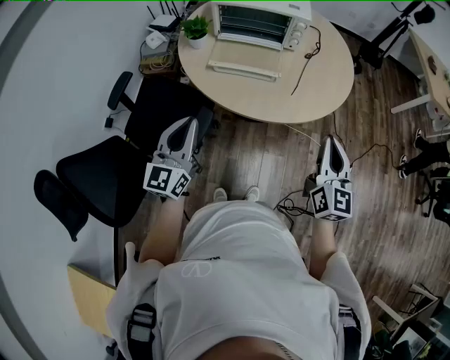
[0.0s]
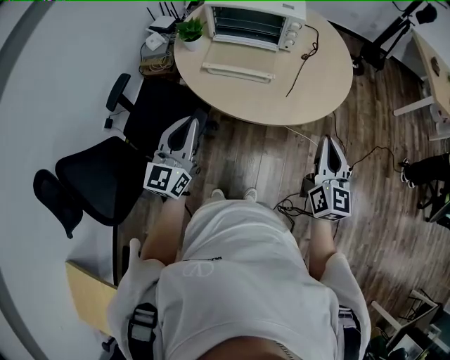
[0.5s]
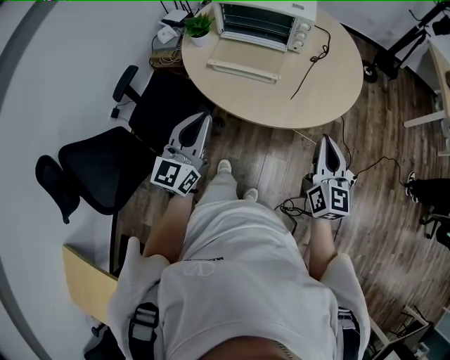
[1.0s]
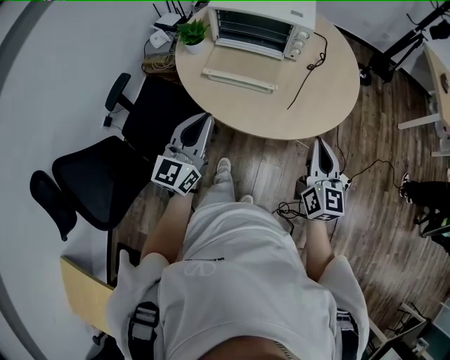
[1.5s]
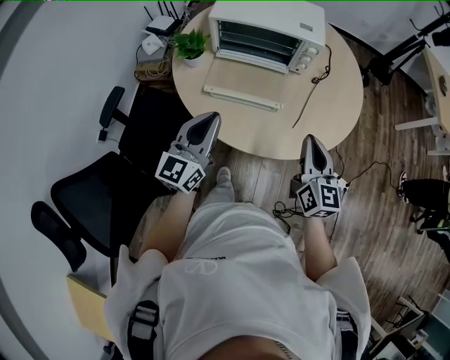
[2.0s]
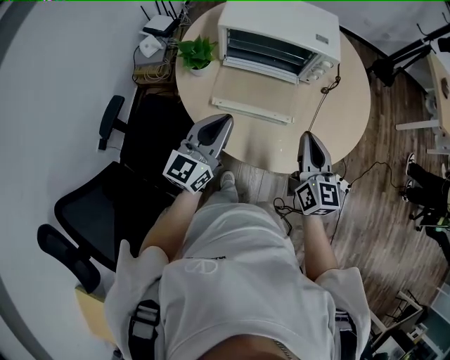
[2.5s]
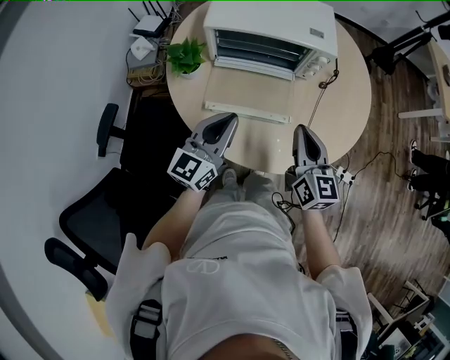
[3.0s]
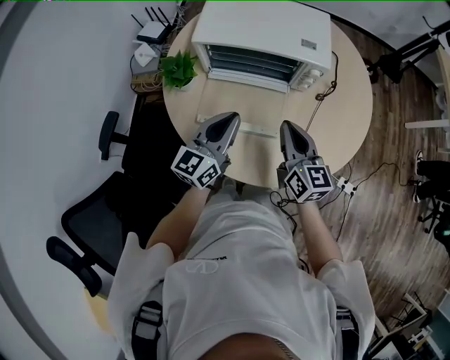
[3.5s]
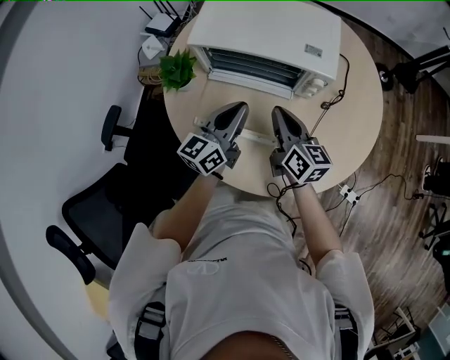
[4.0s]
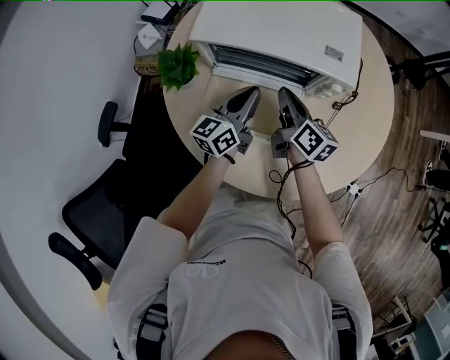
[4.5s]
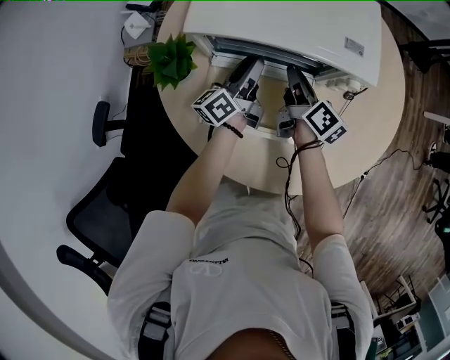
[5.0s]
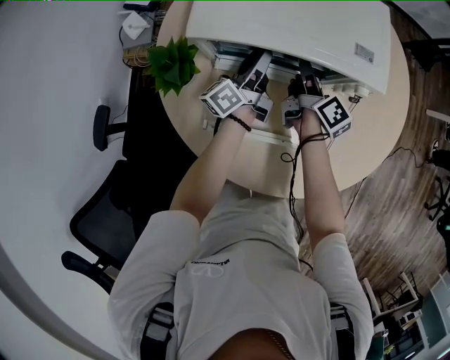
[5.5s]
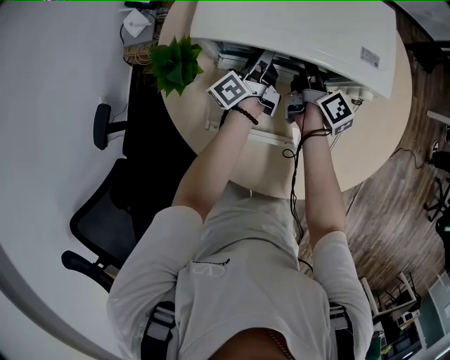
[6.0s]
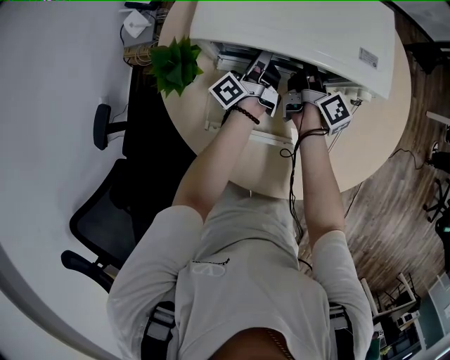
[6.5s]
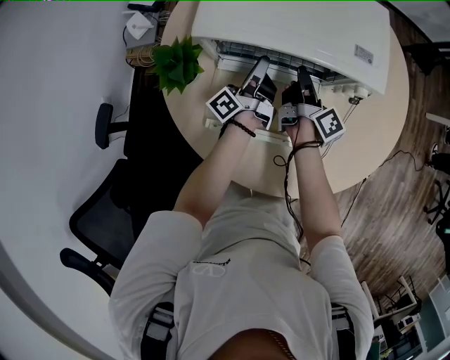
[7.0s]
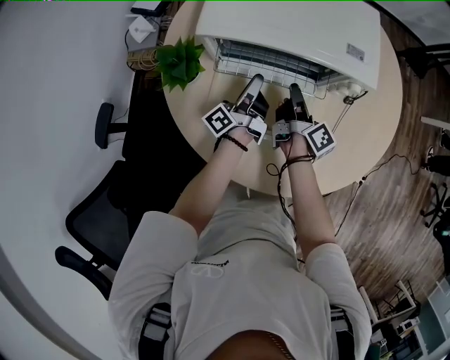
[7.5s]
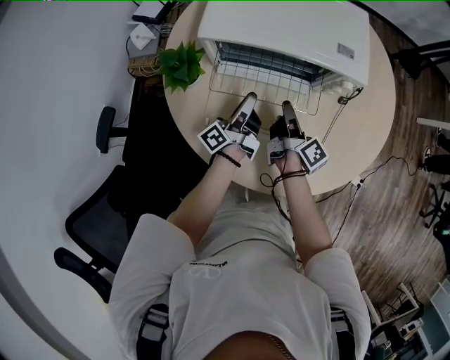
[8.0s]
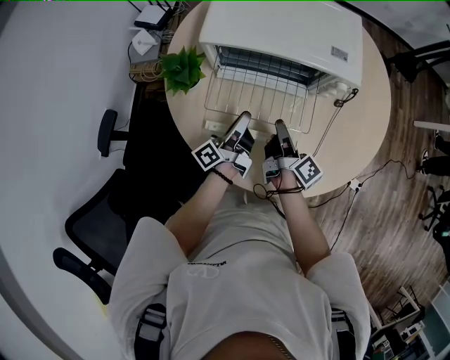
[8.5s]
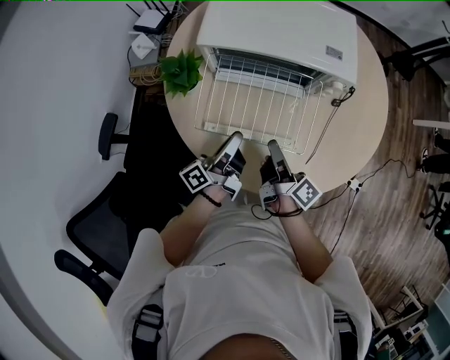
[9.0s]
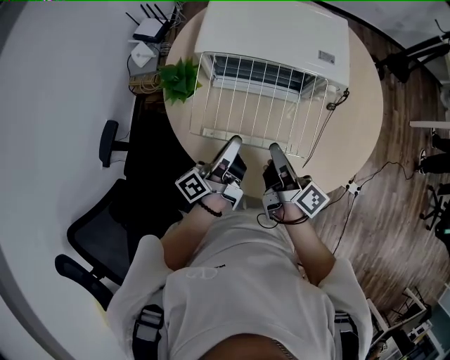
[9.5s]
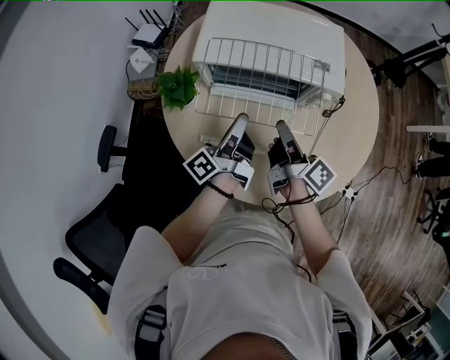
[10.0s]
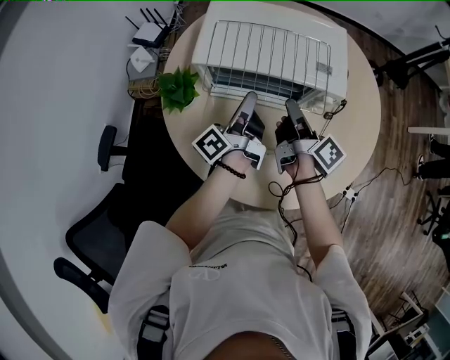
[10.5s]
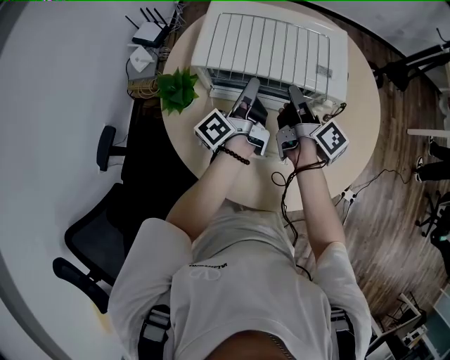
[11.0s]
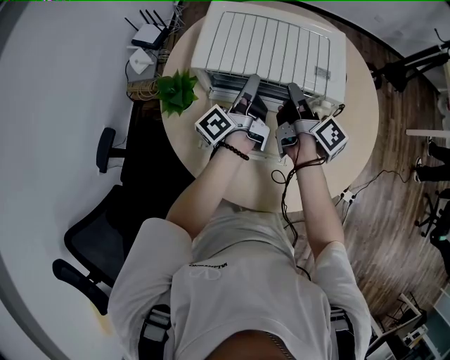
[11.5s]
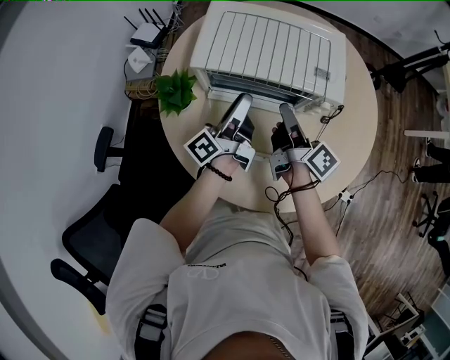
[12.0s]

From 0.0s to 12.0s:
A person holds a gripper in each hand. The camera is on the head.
From 0.0s to 2.0s: Both grippers move forward, some 20 cm.
From 2.0s to 4.0s: The grippers both shift forward by about 25 cm. The right gripper changes its angle by about 30 degrees.
From 4.0s to 6.0s: Both grippers move forward and downward, approximately 25 cm. The left gripper rolls counterclockwise, seen from behind, by about 50 degrees, and opens and closes again. The right gripper rotates around the line of its fingers by roughly 40 degrees, clockwise from behind, and opens up.
From 6.0s to 8.0s: The two grippers go approximately 15 cm backward. The right gripper closes up.
From 8.0s to 10.0s: The grippers both shift upward by about 10 cm.
From 10.0s to 12.0s: The grippers both shift forward by approximately 5 cm. The right gripper opens up. The left gripper opens its fingers.

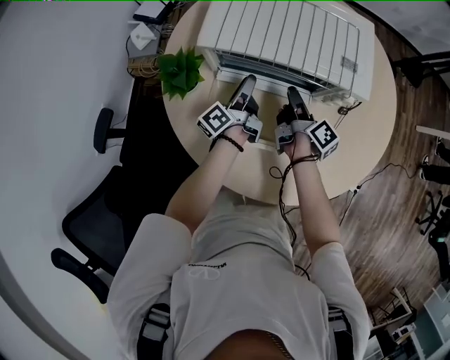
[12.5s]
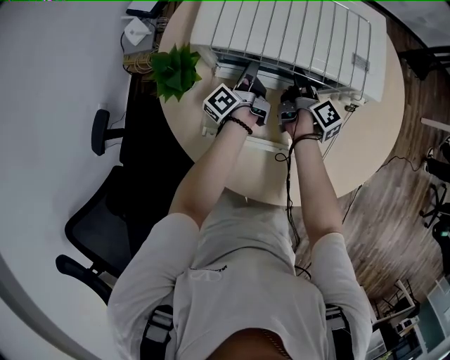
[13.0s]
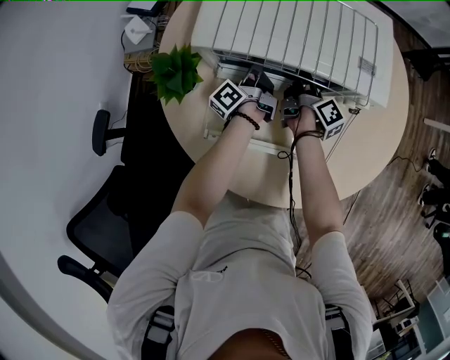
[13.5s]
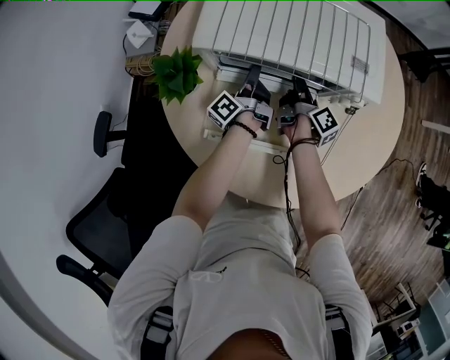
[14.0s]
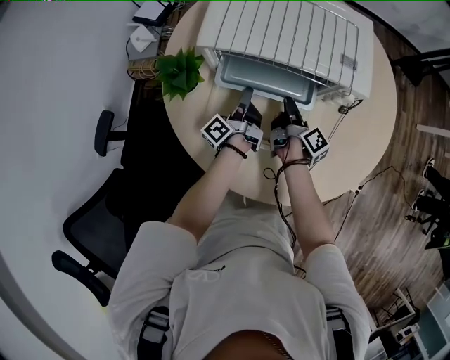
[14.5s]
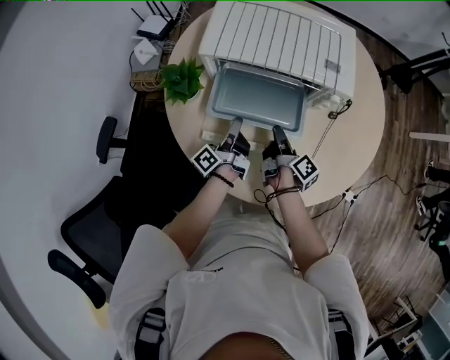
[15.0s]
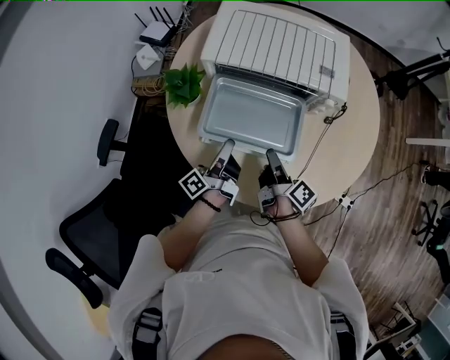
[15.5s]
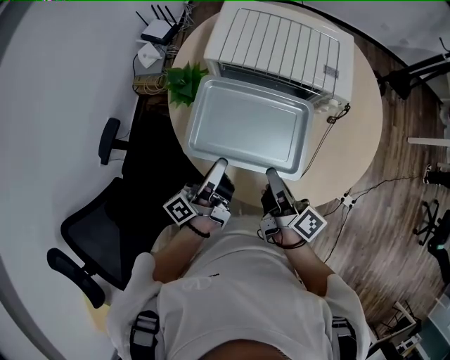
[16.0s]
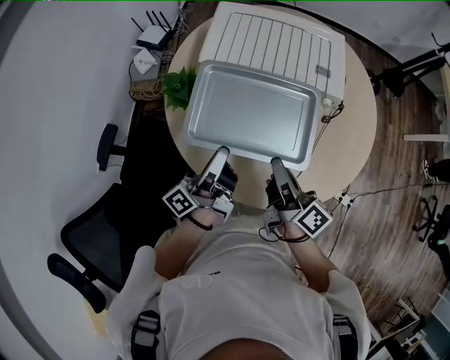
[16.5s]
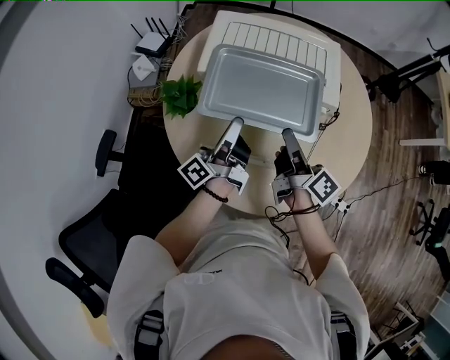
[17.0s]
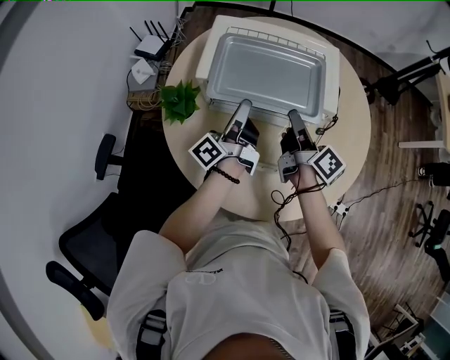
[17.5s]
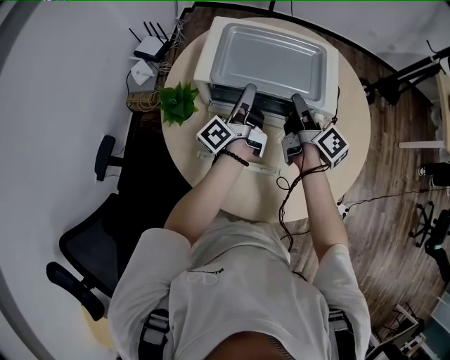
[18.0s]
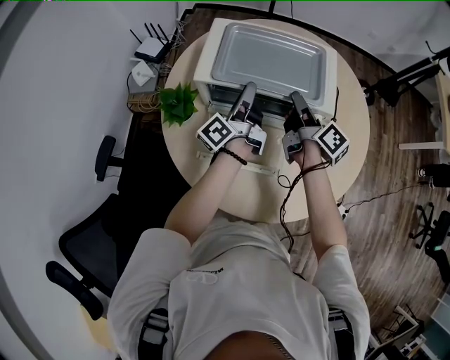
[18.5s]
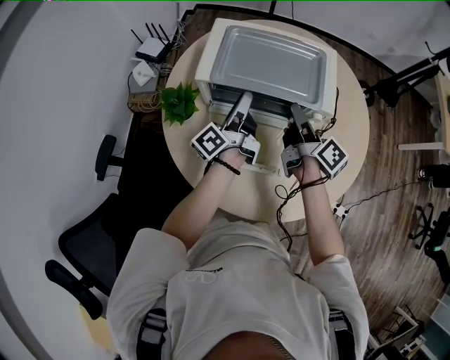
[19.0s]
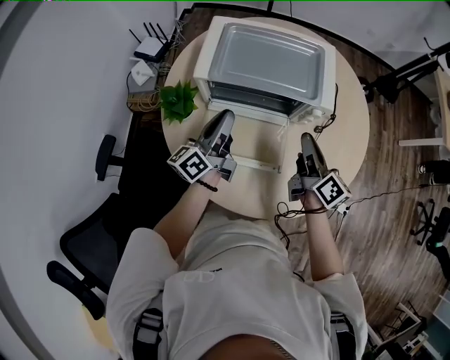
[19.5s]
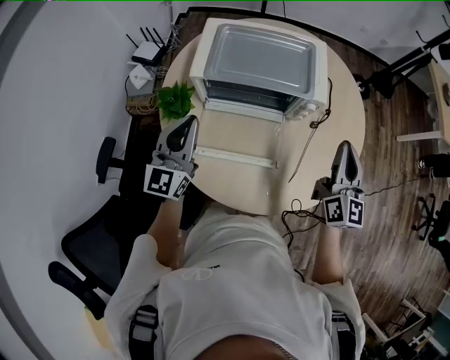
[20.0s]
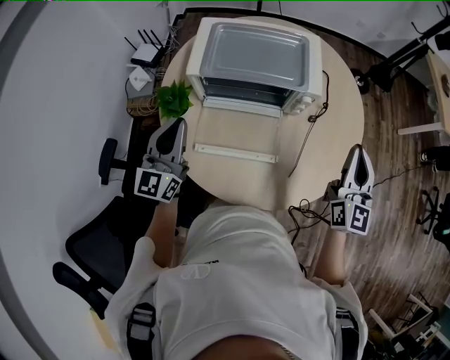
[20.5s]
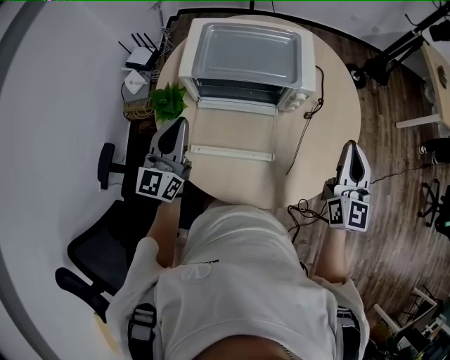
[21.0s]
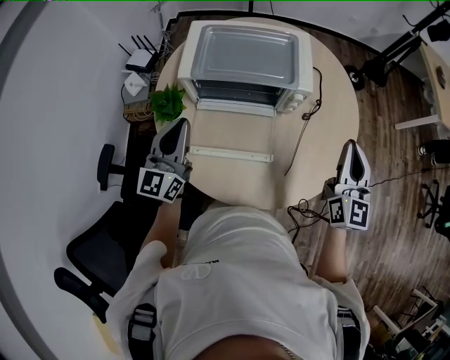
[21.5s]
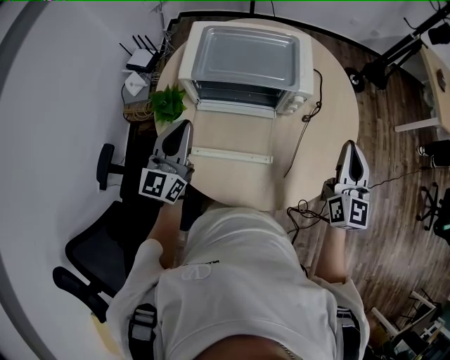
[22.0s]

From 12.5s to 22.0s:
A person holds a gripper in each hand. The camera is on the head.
From 12.5s to 14.5s: The left gripper travels forward and back again, roughly 5 cm each way, and closes up. The right gripper travels forward and back again, roughly 5 cm each way.
From 14.5s to 16.5s: The grippers both shift upward and backward by approximately 25 cm. The right gripper rotates roughly 30 degrees.
From 16.5s to 18.0s: Both grippers travel together forward, some 20 cm.
From 18.0s to 20.0s: The left gripper travels backward, to the left and upward by approximately 20 cm, rotates around the line of its fingers by some 80 degrees, clockwise from behind, and opens and closes again; the right gripper shifts roughly 25 cm backward, to the right and upward, rotates around the line of its fingers by roughly 60 degrees, counterclockwise from behind, and opens, then closes once more.
From 20.0s to 22.0s: The right gripper ends up roughly 5 cm from where it was.

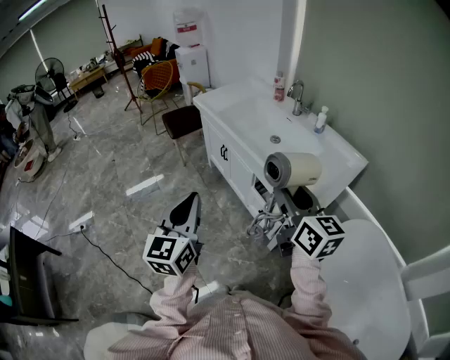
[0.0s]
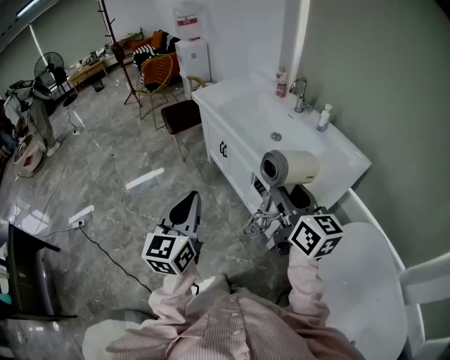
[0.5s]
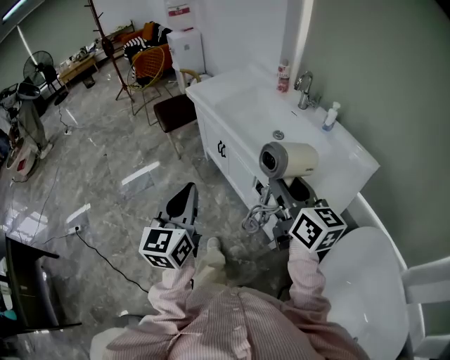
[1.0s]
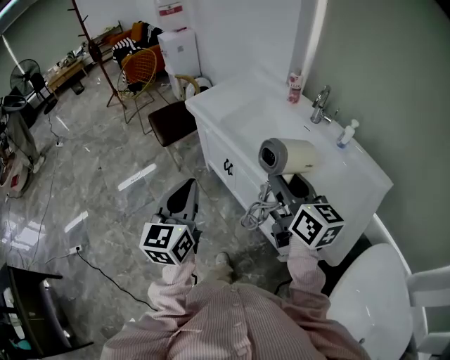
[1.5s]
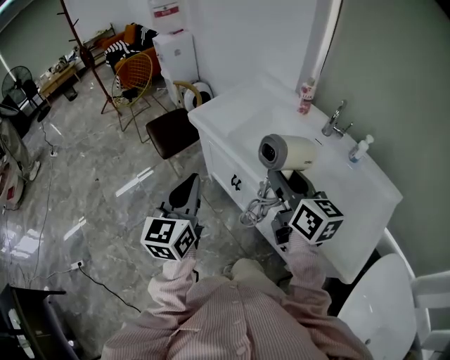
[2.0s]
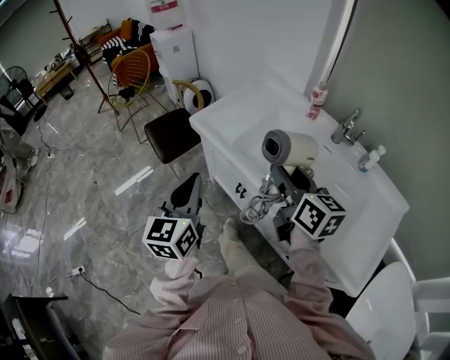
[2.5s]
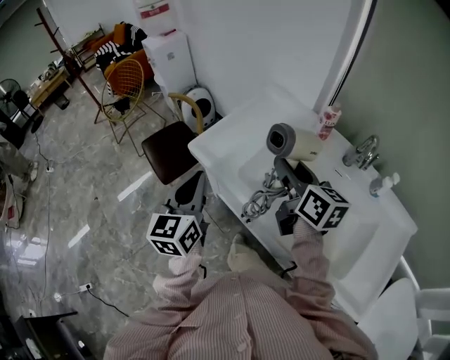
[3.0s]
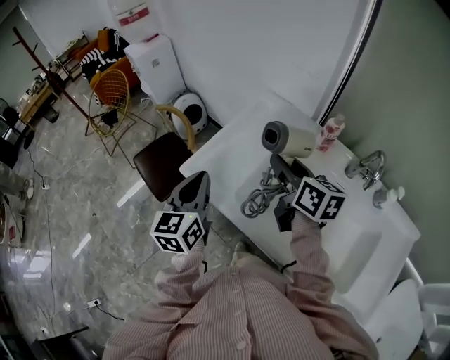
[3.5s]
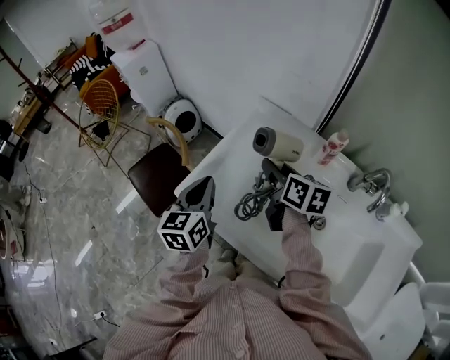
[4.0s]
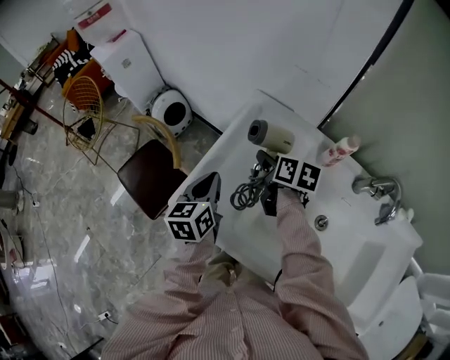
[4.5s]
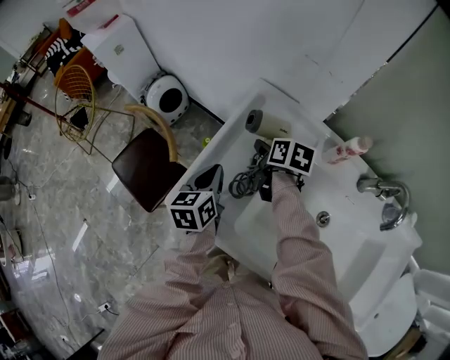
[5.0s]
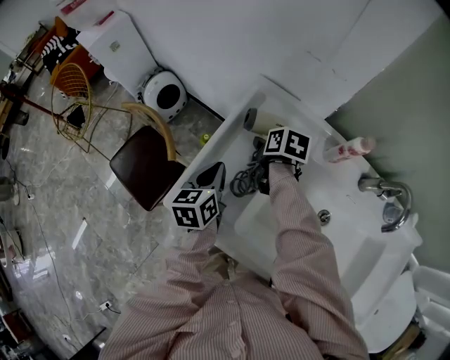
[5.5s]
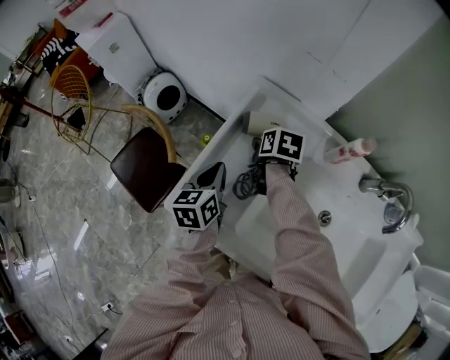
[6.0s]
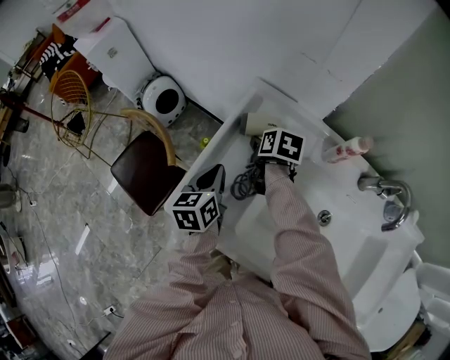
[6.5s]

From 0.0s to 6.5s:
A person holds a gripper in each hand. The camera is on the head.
From 0.0s to 2.0s: Both grippers are carried forward, some 40 cm.
From 2.0s to 4.5s: Both grippers are carried forward, roughly 50 cm. The left gripper swivels some 30 degrees. Meanwhile the right gripper swivels some 40 degrees.
From 4.5s to 6.5s: The left gripper heads downward, covering approximately 5 cm; the right gripper heads downward and forward, covering about 10 cm.
